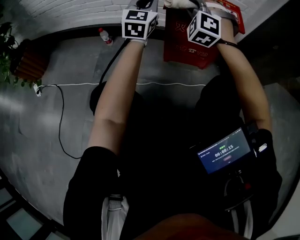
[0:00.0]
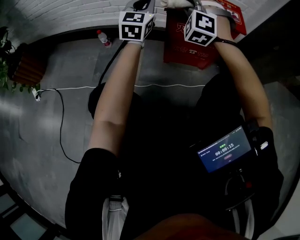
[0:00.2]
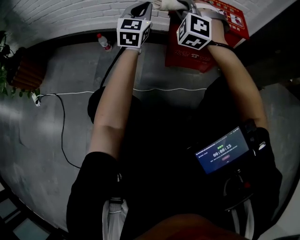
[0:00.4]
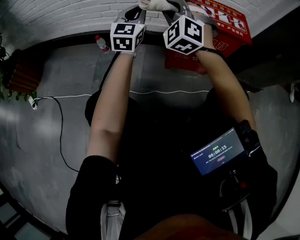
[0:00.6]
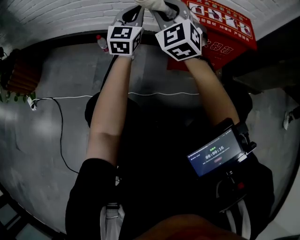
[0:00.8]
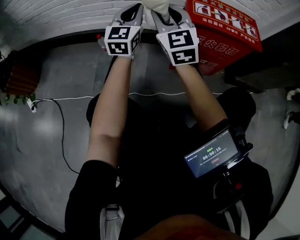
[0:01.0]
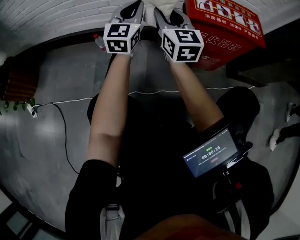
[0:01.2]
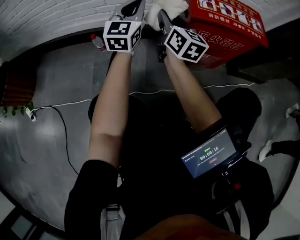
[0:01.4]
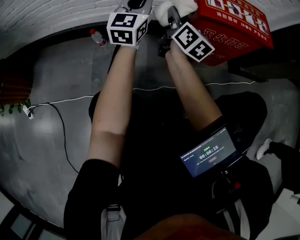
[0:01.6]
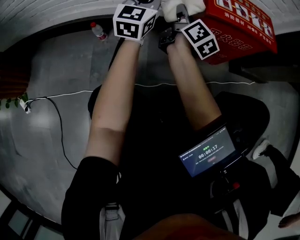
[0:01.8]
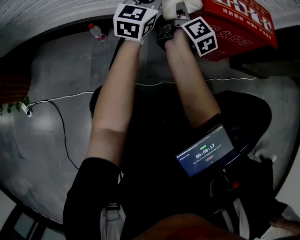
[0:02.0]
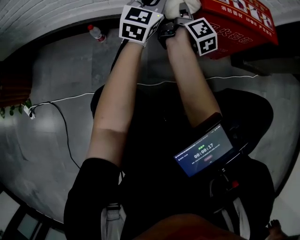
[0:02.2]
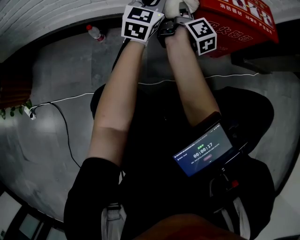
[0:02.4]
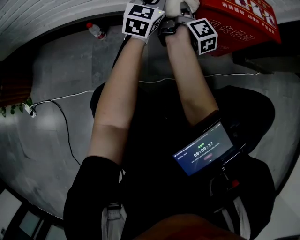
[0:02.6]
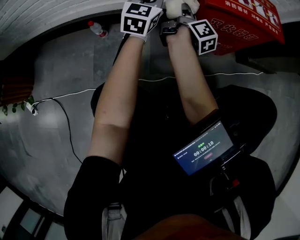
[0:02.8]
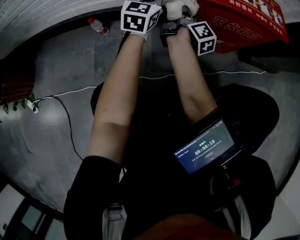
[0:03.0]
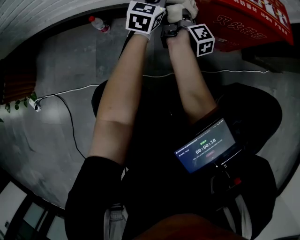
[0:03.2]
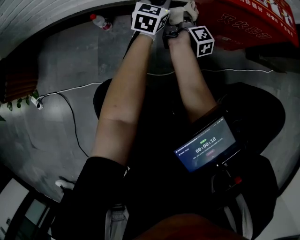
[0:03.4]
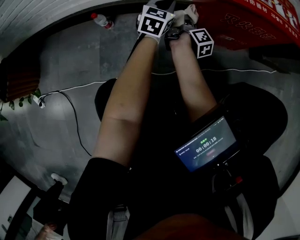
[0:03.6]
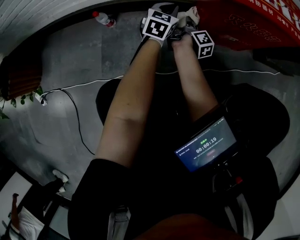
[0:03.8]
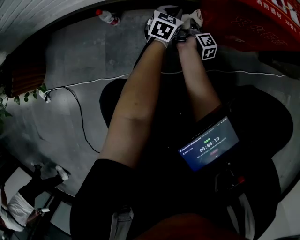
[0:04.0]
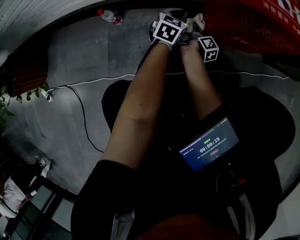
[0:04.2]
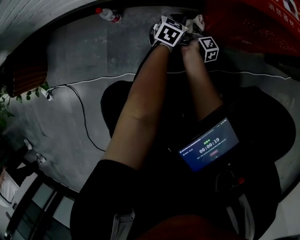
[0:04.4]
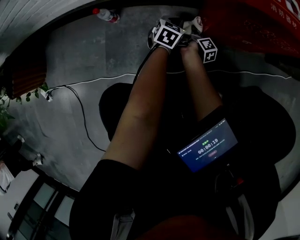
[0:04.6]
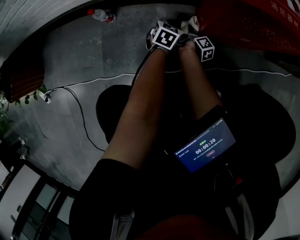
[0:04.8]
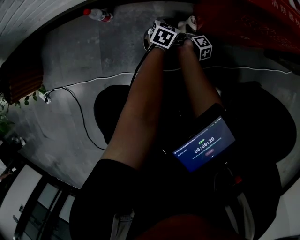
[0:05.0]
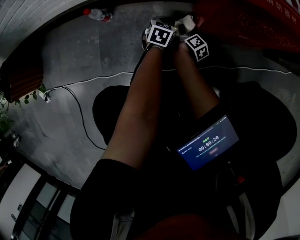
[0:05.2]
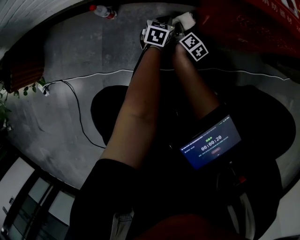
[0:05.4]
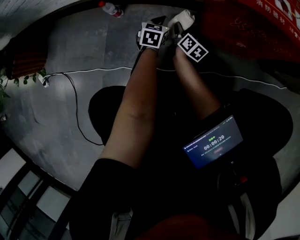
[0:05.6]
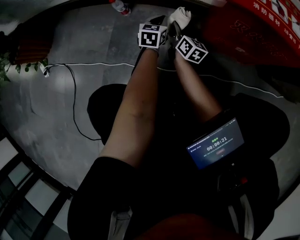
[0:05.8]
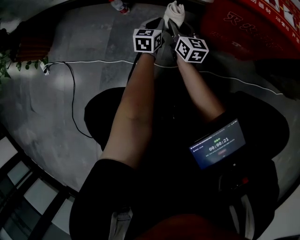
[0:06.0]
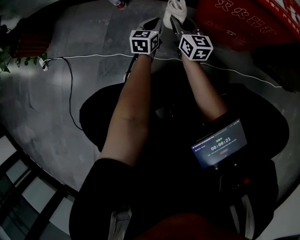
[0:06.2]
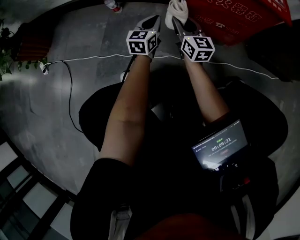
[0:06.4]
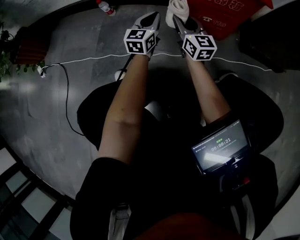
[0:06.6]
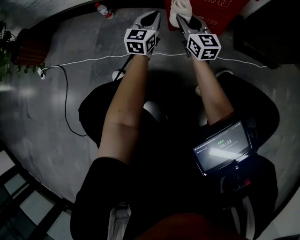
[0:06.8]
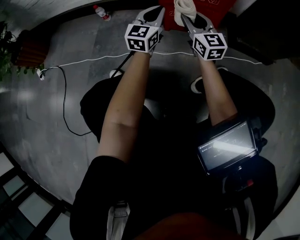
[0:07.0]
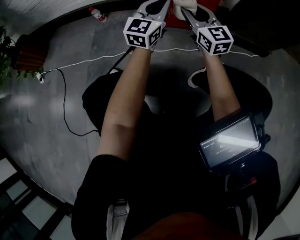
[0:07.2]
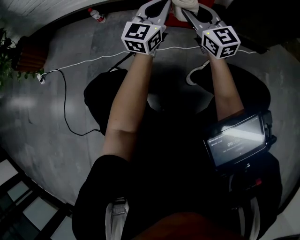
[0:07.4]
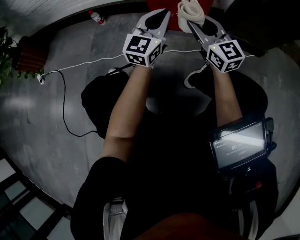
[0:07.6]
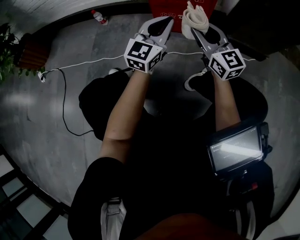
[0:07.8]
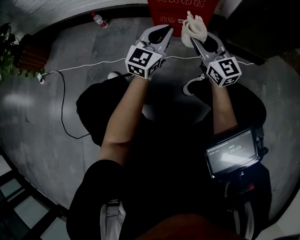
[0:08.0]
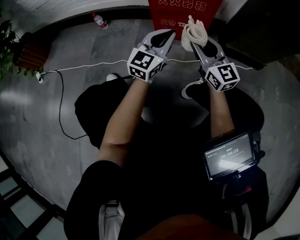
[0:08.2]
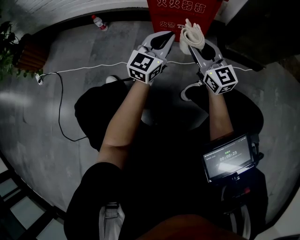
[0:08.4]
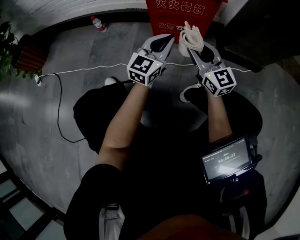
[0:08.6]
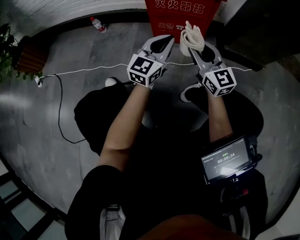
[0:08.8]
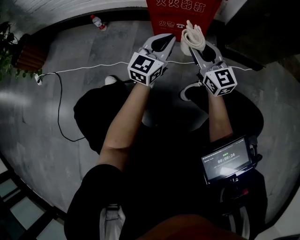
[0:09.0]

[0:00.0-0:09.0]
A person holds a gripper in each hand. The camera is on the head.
0:00.0 to 0:01.6: The right gripper shifts about 20 cm to the left, downward and forward, and twists some 120 degrees clockwise, seen from behind. The left gripper heads to the left, forward and downward, covering approximately 20 cm.
0:01.6 to 0:03.0: The grippers both shift downward by about 10 cm. The right gripper swivels some 40 degrees.
0:03.0 to 0:04.4: Both grippers move downward, some 25 cm. The right gripper changes its angle by some 20 degrees; the left gripper changes its angle by roughly 30 degrees.
0:04.4 to 0:06.0: The right gripper shifts some 20 cm upward, and rotates around the line of its fingers by roughly 70 degrees, counterclockwise from behind. Meanwhile the left gripper changes place by some 15 cm, and rotates roughly 30 degrees.
0:06.0 to 0:07.6: The left gripper is displaced to the right, upward and backward by roughly 50 cm, and points its fingers about 30 degrees further upward; the right gripper goes roughly 50 cm to the right, backward and upward, and turns by some 30 degrees.
0:07.6 to 0:09.0: The grippers move only a little.

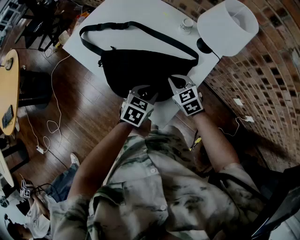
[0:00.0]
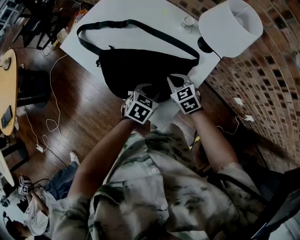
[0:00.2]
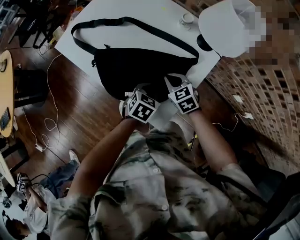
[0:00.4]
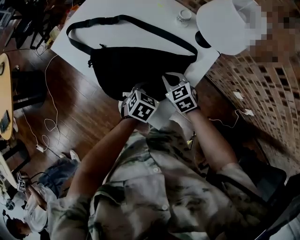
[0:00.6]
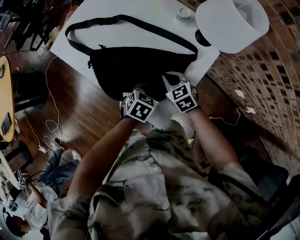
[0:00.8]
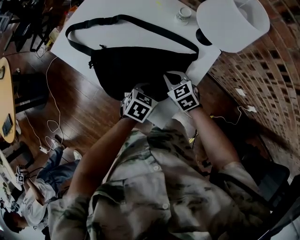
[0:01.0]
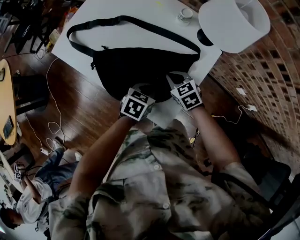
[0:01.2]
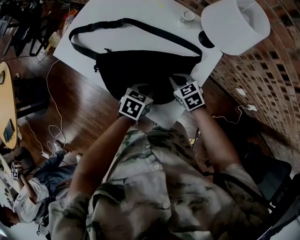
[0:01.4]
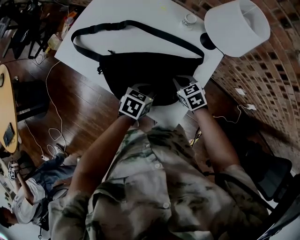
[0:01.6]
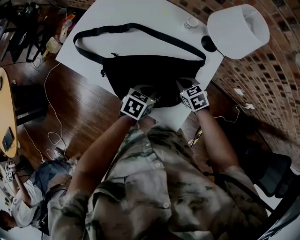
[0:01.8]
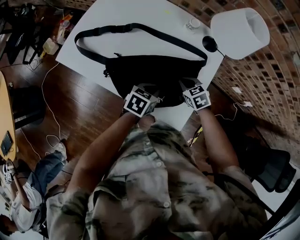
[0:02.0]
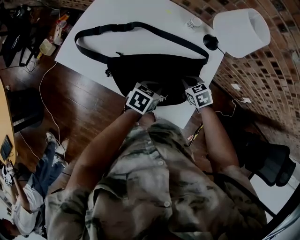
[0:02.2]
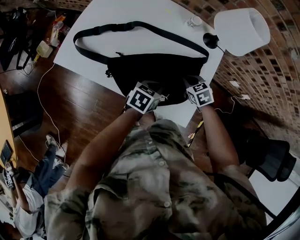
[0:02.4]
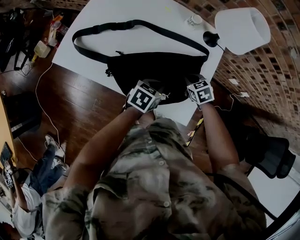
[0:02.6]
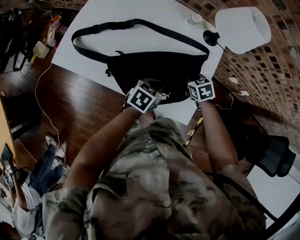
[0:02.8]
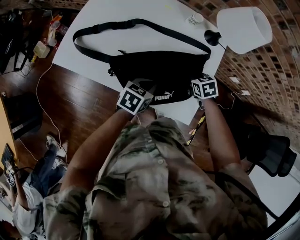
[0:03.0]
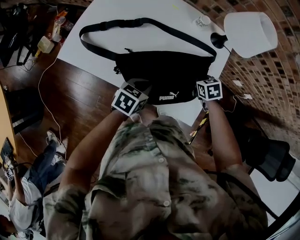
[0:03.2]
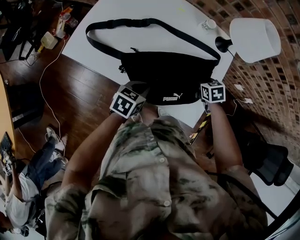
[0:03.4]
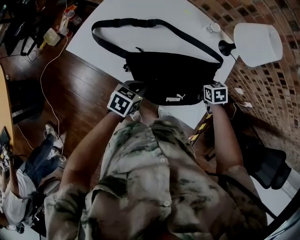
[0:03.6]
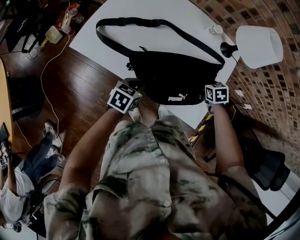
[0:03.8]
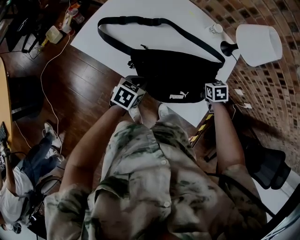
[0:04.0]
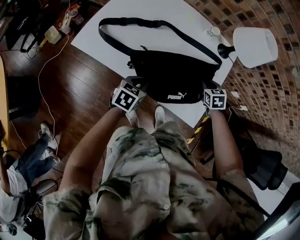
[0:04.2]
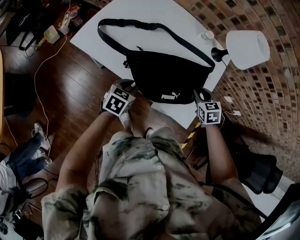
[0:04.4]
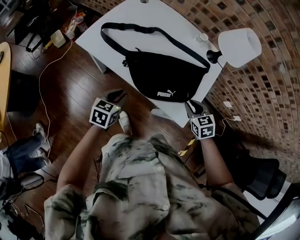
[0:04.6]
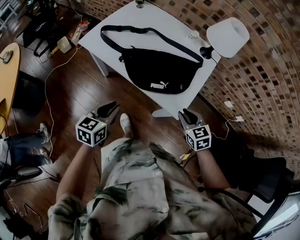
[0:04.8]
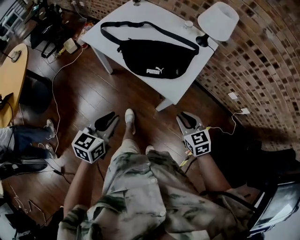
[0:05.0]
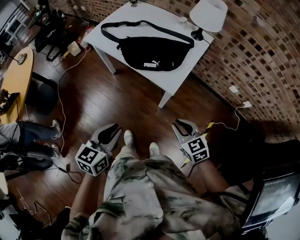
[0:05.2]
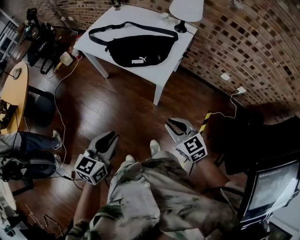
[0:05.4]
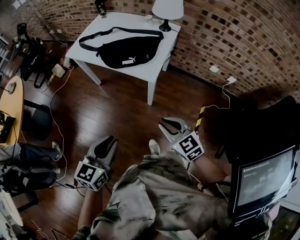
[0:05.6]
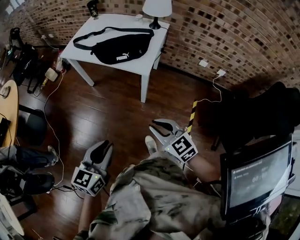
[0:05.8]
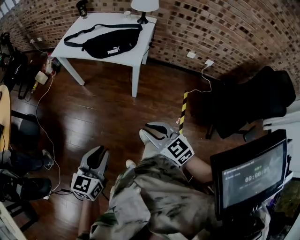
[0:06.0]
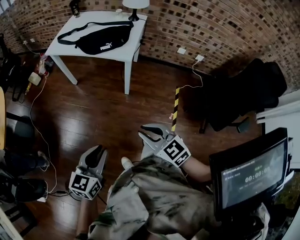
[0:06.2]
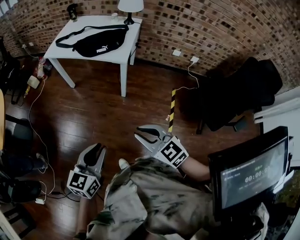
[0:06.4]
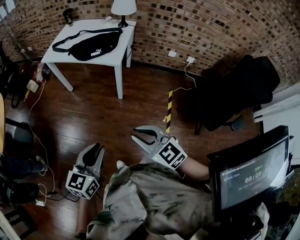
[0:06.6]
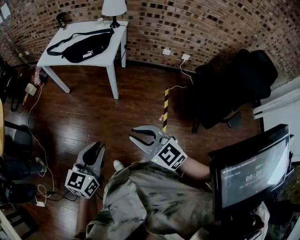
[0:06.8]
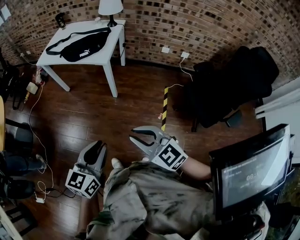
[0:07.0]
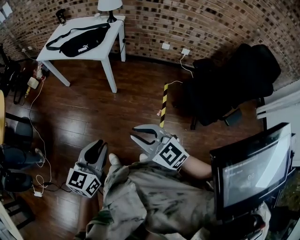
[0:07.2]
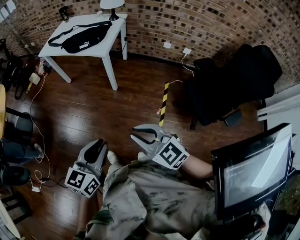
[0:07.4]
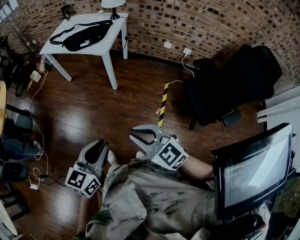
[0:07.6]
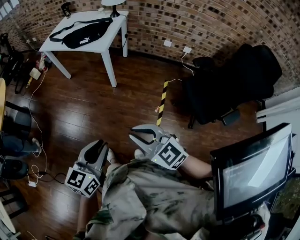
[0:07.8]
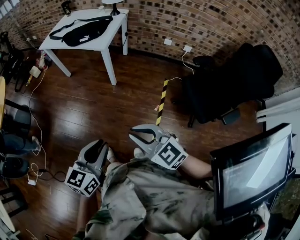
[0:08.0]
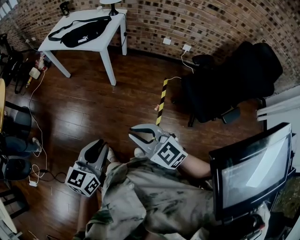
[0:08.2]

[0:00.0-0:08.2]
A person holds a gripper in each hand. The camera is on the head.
0:00.0 to 0:01.6: The right gripper is displaced downward by approximately 5 cm; the left gripper ends up roughly 5 cm from where it was, and closes up.
0:01.6 to 0:03.2: The left gripper is displaced to the left by roughly 10 cm. Meanwhile the right gripper swivels roughly 20 degrees.
0:03.2 to 0:05.0: The right gripper shifts by about 35 cm, and rotates approximately 30 degrees. The left gripper shifts by approximately 35 cm, and rotates approximately 30 degrees.
0:05.0 to 0:06.6: The pair of grippers is taken backward, roughly 40 cm.
0:06.6 to 0:08.2: Both grippers travel together to the right and backward, roughly 20 cm.

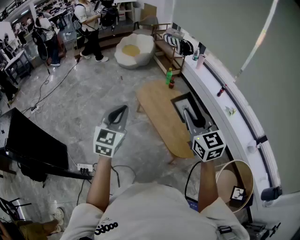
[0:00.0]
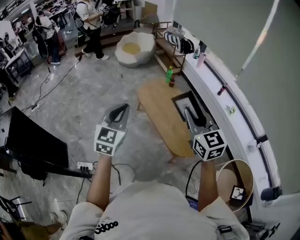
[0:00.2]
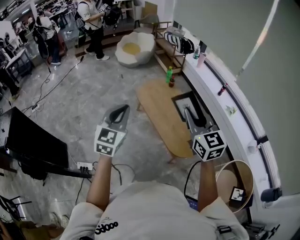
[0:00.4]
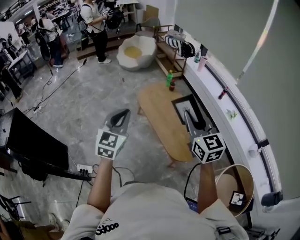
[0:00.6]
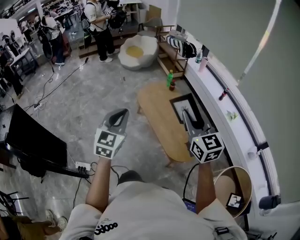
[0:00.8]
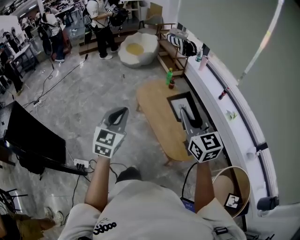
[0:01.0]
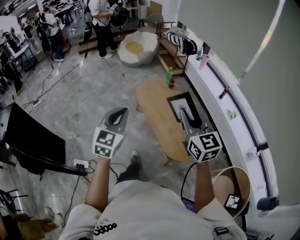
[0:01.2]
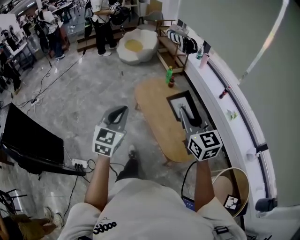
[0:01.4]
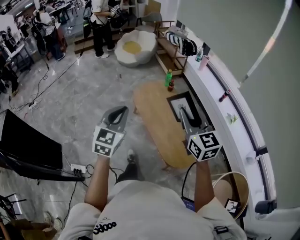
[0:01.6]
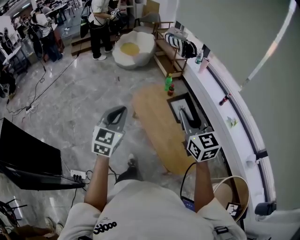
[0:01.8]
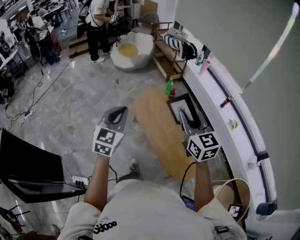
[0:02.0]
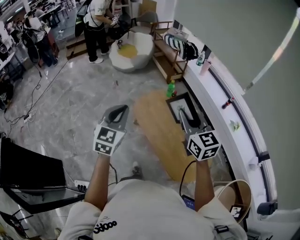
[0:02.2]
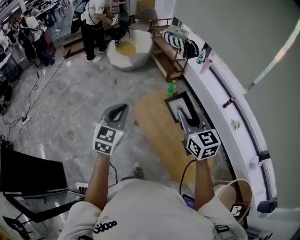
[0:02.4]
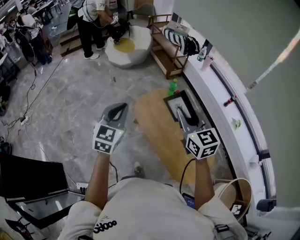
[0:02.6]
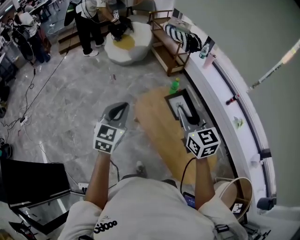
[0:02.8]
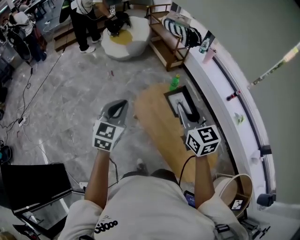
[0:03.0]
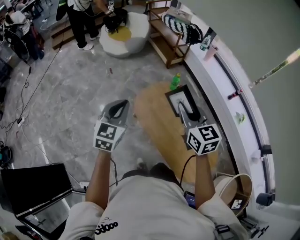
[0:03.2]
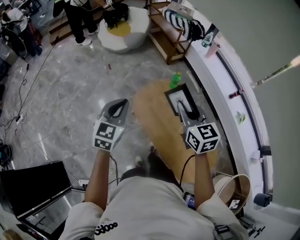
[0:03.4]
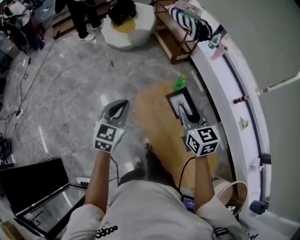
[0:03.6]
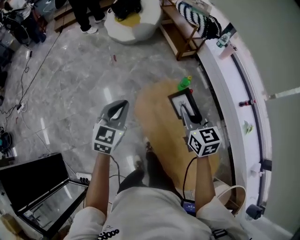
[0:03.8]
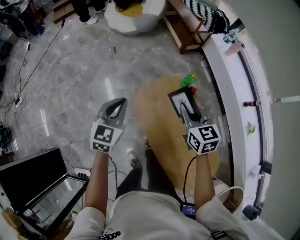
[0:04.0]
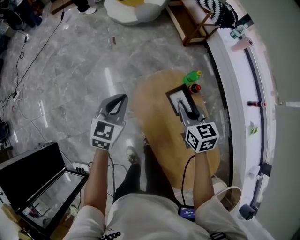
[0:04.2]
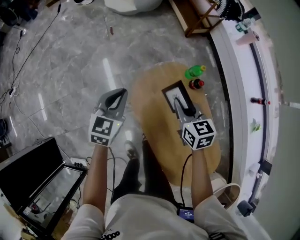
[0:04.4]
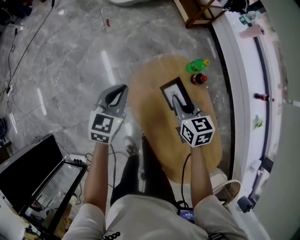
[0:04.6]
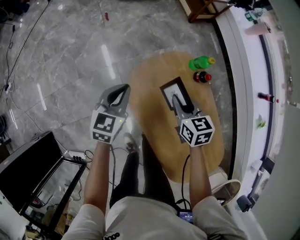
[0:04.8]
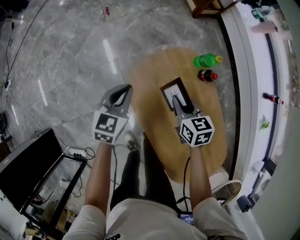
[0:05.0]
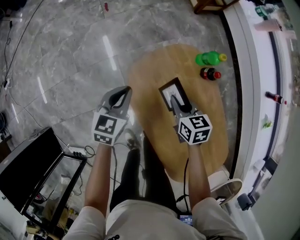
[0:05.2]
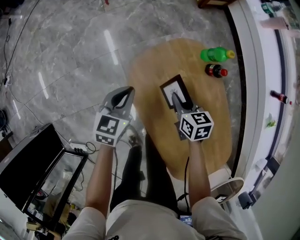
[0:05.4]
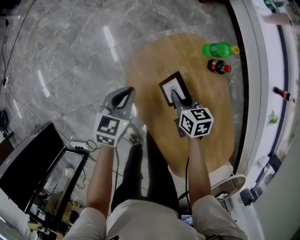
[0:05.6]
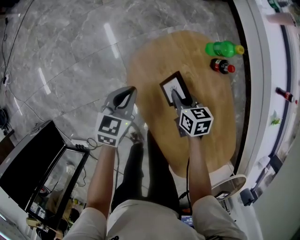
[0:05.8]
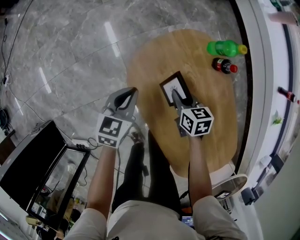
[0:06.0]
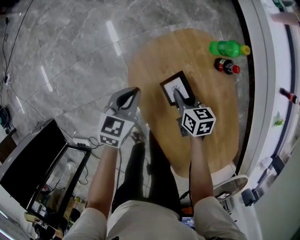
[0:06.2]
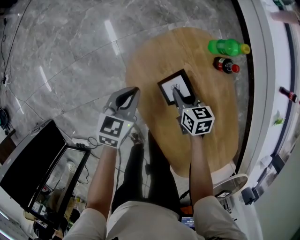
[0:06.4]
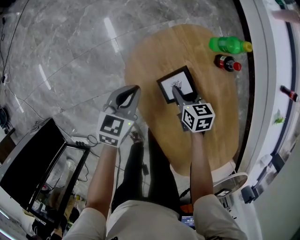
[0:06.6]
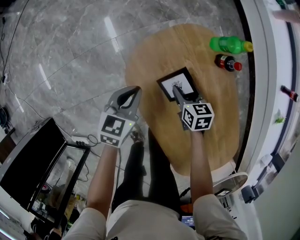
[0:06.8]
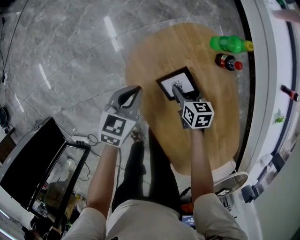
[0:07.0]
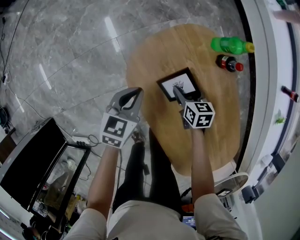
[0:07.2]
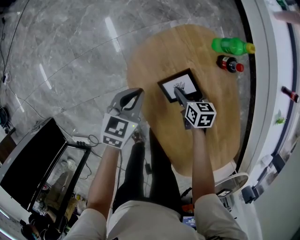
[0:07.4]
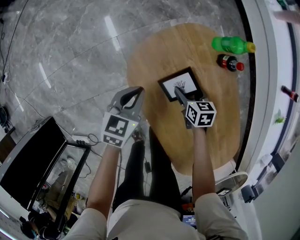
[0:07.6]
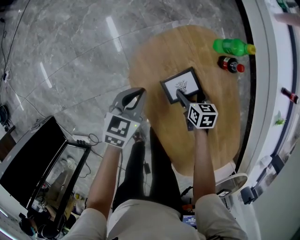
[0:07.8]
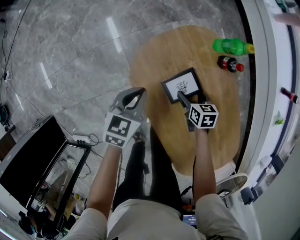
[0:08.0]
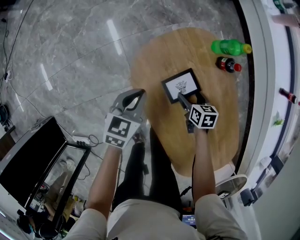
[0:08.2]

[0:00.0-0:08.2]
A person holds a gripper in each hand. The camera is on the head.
0:00.0 to 0:01.6: The right gripper shifts some 10 cm forward; the left gripper goes approximately 10 cm forward and to the right.
0:01.6 to 0:03.2: Both grippers travel together forward, roughly 35 cm.
0:03.2 to 0:05.0: The two grippers go roughly 40 cm downward and forward. The left gripper turns by approximately 20 degrees. The right gripper turns by some 30 degrees.
0:05.0 to 0:06.6: The two grippers go some 15 cm downward.
0:06.6 to 0:08.2: The right gripper moves roughly 5 cm, and opens up.
